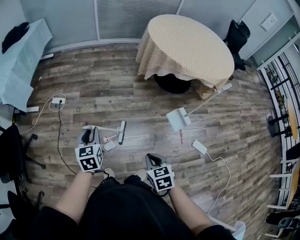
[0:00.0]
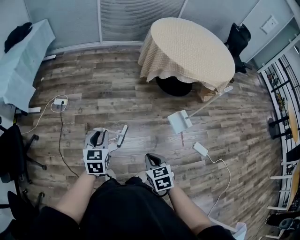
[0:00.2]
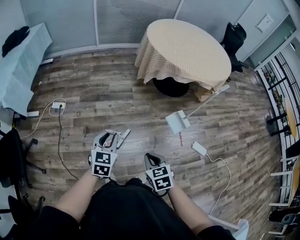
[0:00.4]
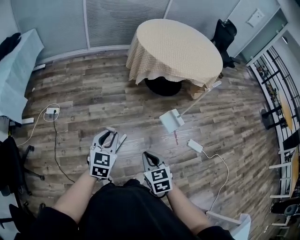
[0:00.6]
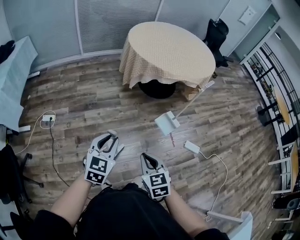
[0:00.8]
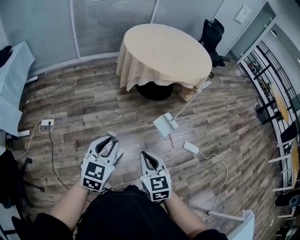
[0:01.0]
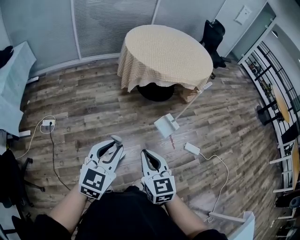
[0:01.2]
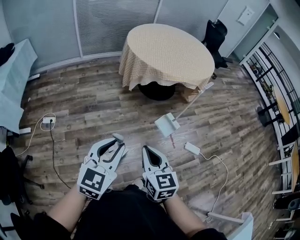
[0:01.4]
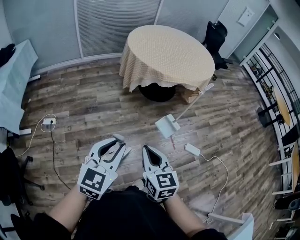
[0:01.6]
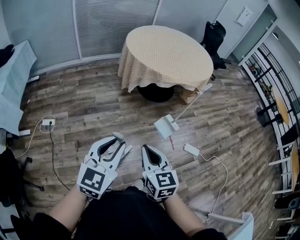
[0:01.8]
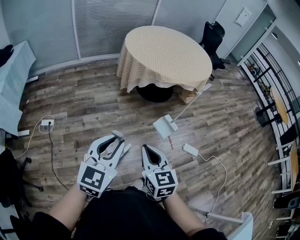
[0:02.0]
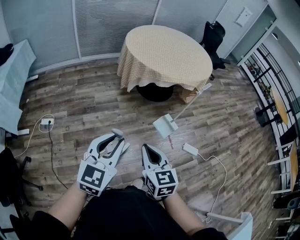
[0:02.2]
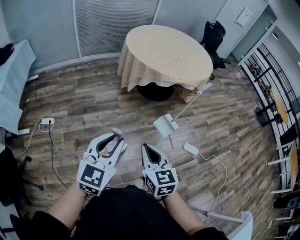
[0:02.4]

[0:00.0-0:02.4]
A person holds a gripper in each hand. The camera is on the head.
0:00.0 to 0:01.2: The left gripper ends up some 25 cm from where it was, and rotates roughly 50 degrees; the right gripper is displaced upward by some 15 cm, and rotates approximately 30 degrees.
0:01.2 to 0:02.4: The grippers move only a little.

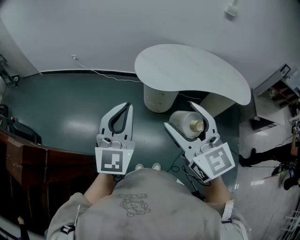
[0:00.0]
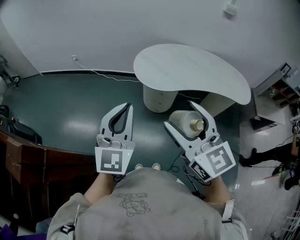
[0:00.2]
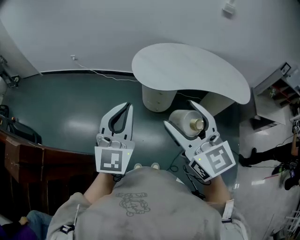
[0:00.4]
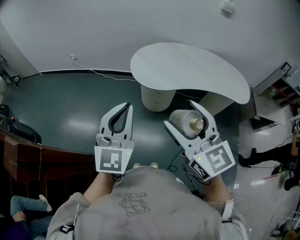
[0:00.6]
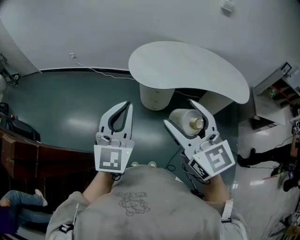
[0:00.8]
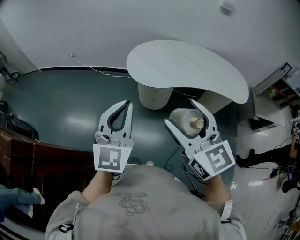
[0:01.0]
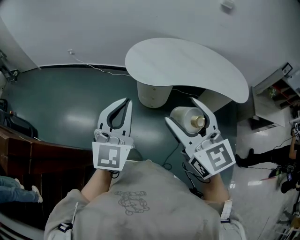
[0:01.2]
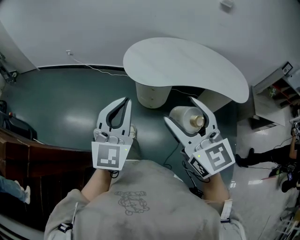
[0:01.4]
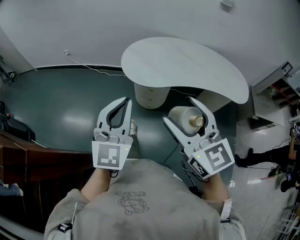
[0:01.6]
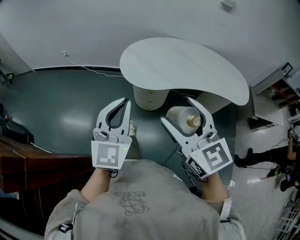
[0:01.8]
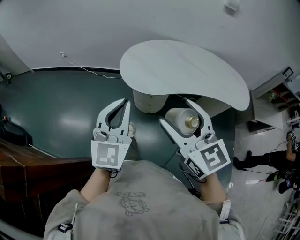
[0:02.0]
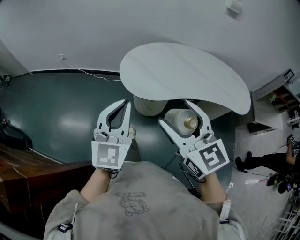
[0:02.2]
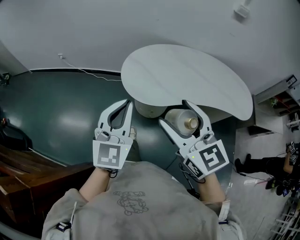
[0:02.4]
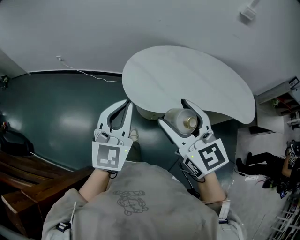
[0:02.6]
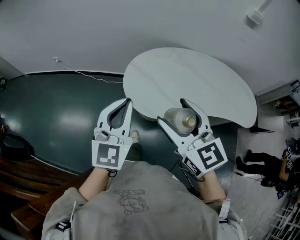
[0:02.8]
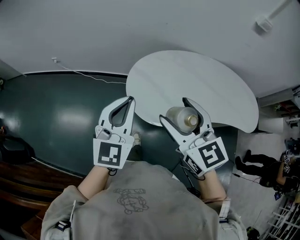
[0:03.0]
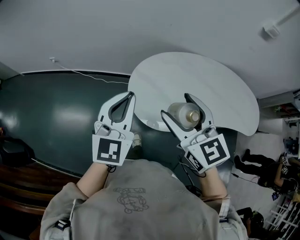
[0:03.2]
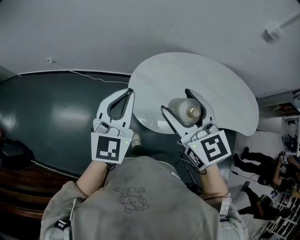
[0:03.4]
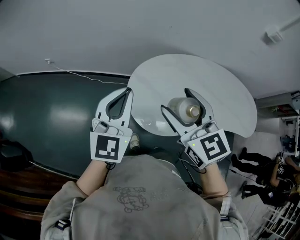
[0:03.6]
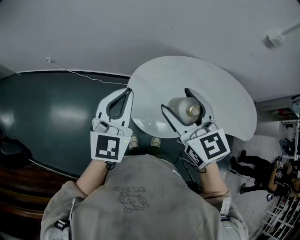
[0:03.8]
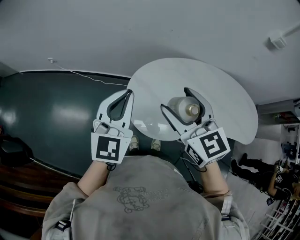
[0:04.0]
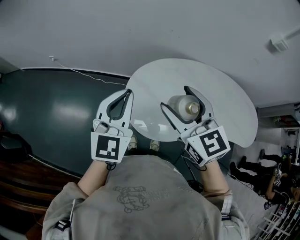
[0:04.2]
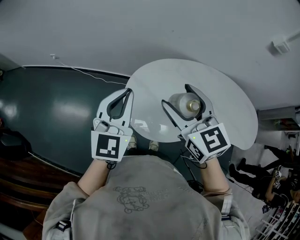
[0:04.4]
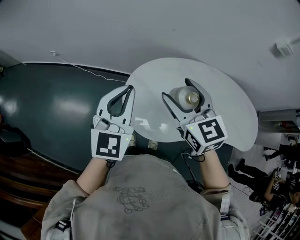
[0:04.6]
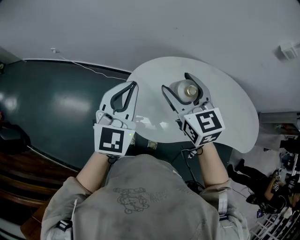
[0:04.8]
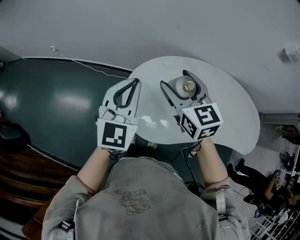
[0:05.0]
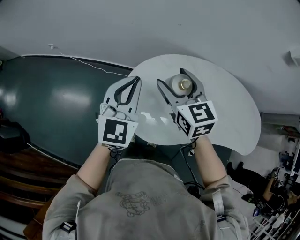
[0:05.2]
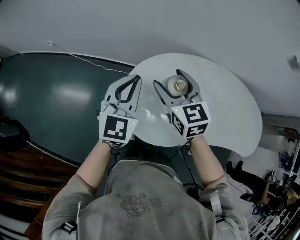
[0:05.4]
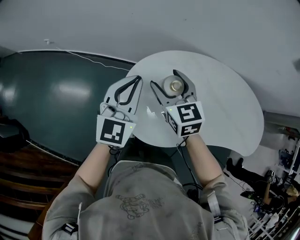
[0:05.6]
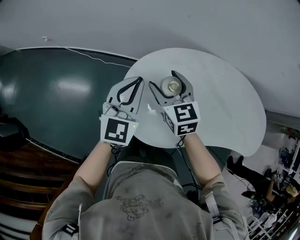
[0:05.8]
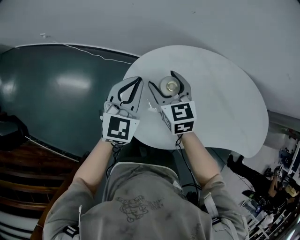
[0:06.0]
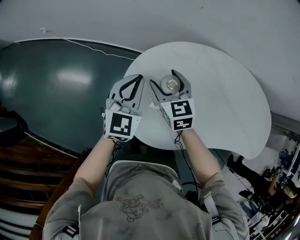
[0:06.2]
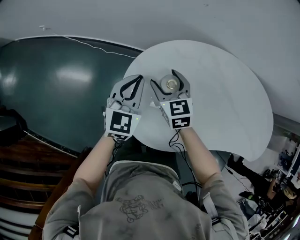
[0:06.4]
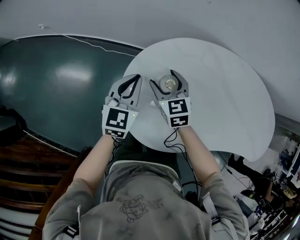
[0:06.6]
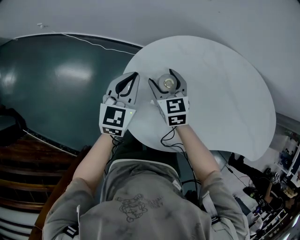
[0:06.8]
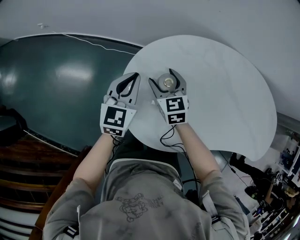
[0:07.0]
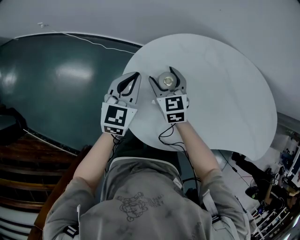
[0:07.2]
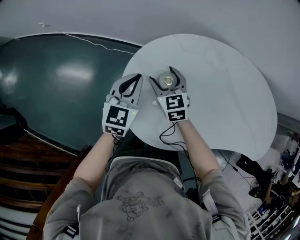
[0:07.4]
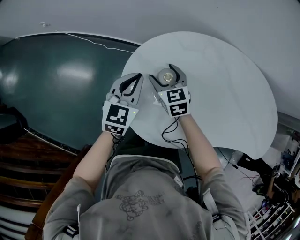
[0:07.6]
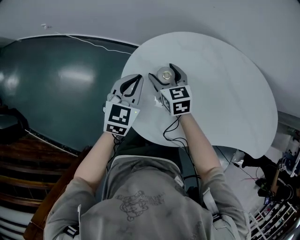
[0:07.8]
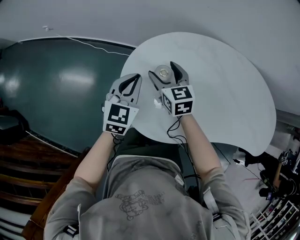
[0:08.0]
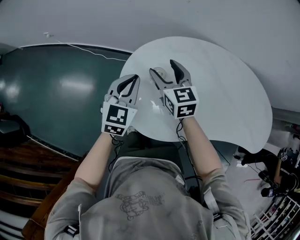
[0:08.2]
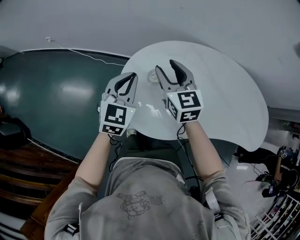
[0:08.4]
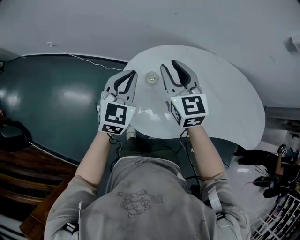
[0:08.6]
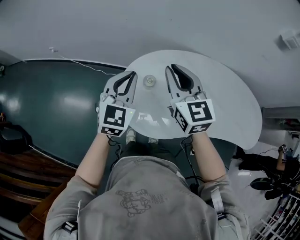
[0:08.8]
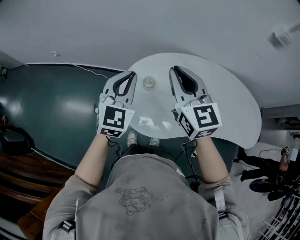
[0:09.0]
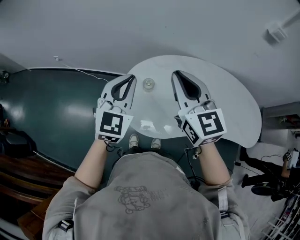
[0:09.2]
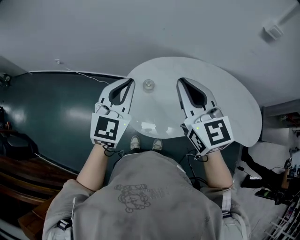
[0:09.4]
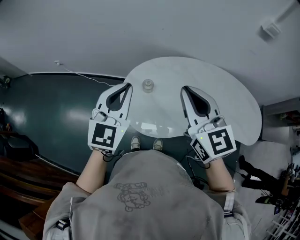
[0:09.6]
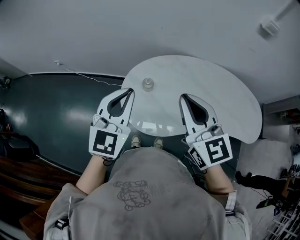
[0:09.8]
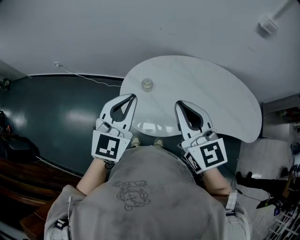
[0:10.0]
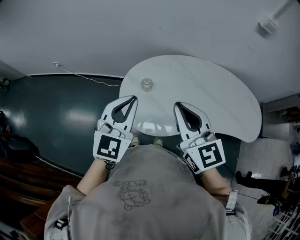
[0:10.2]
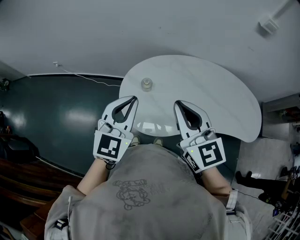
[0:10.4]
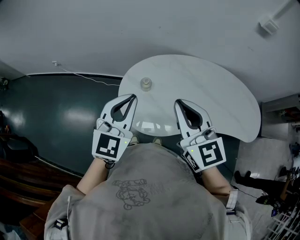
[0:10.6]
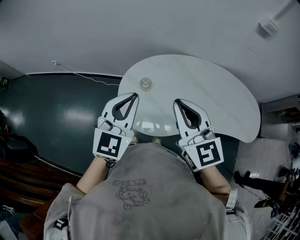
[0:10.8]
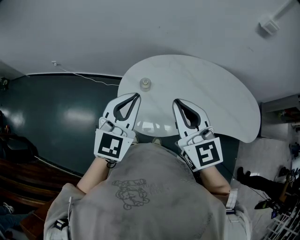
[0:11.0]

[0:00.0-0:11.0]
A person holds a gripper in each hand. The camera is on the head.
0:00.0 to 0:01.6: Both grippers move to the right, roughly 10 cm.
0:01.6 to 0:03.2: The pair of grippers is taken forward, about 40 cm.
0:03.2 to 0:04.8: The left gripper shifts roughly 10 cm forward. The right gripper travels forward by about 15 cm.
0:04.8 to 0:06.2: Both grippers move downward and forward, roughly 25 cm.
0:06.2 to 0:07.8: The two grippers go about 10 cm downward.
0:07.8 to 0:09.4: The right gripper is displaced upward and backward by about 40 cm, swivels about 30 degrees, and closes its fingers. The left gripper goes about 30 cm upward, and swivels roughly 20 degrees.
0:09.4 to 0:11.0: The right gripper is displaced backward by approximately 5 cm. The left gripper shifts by roughly 5 cm.

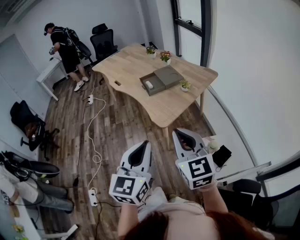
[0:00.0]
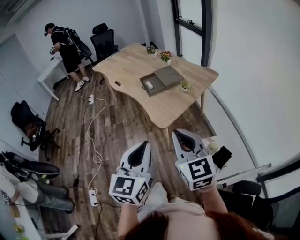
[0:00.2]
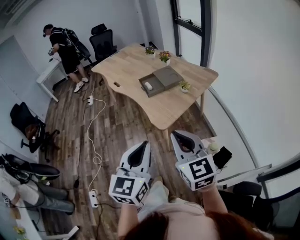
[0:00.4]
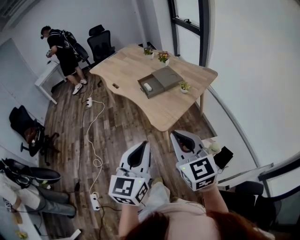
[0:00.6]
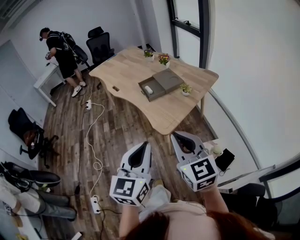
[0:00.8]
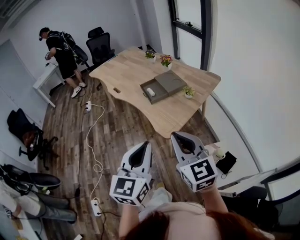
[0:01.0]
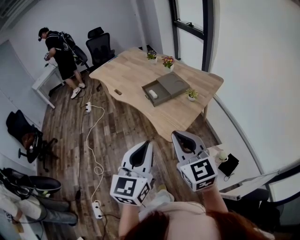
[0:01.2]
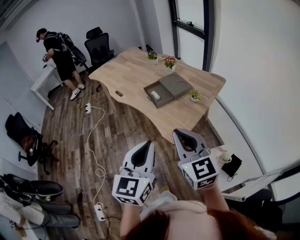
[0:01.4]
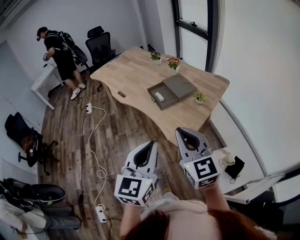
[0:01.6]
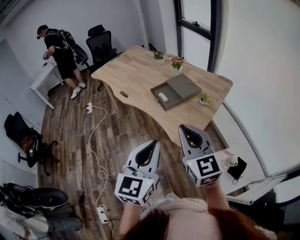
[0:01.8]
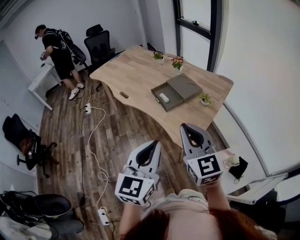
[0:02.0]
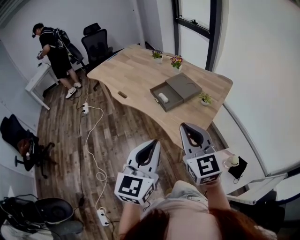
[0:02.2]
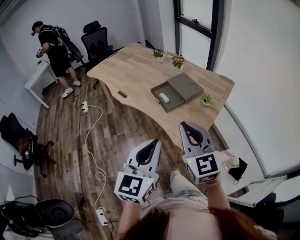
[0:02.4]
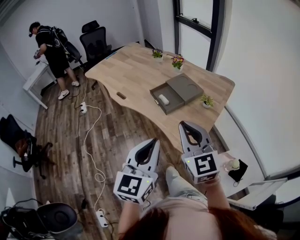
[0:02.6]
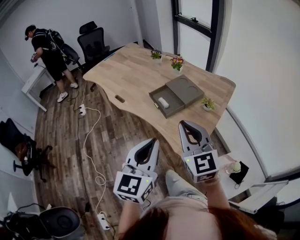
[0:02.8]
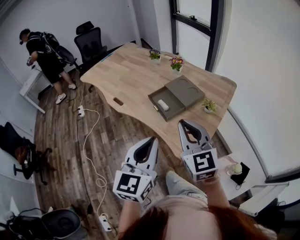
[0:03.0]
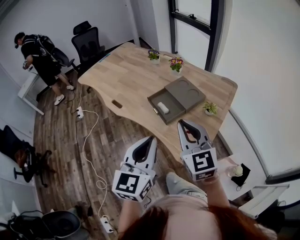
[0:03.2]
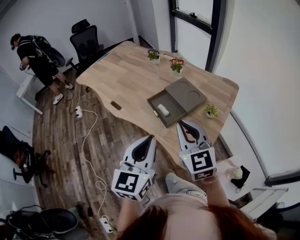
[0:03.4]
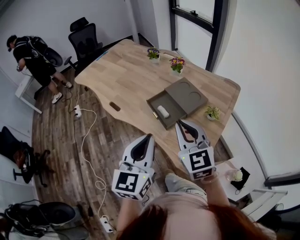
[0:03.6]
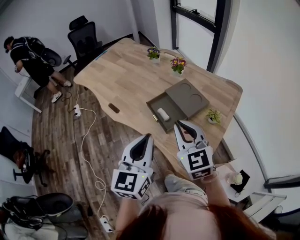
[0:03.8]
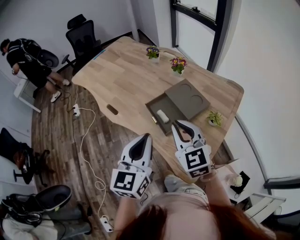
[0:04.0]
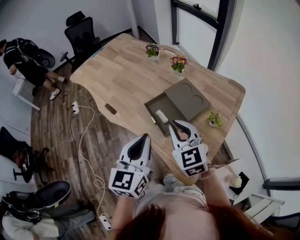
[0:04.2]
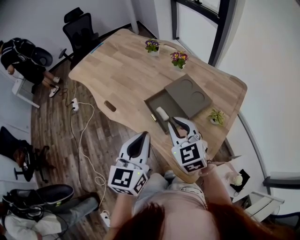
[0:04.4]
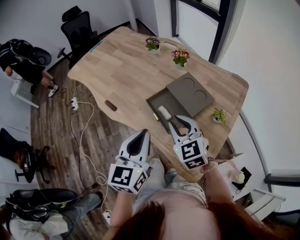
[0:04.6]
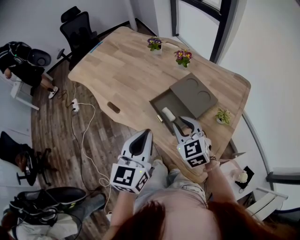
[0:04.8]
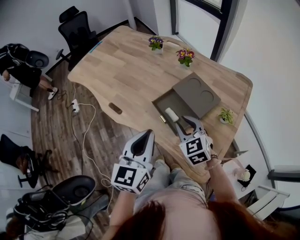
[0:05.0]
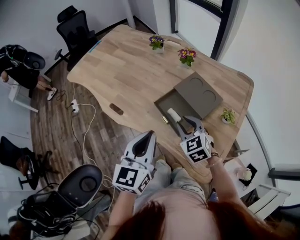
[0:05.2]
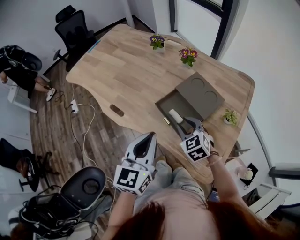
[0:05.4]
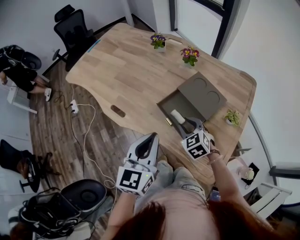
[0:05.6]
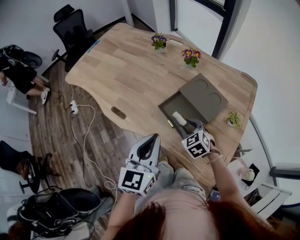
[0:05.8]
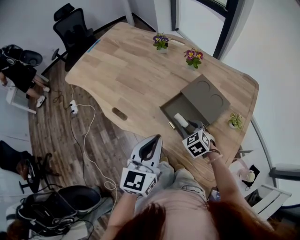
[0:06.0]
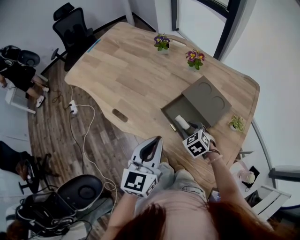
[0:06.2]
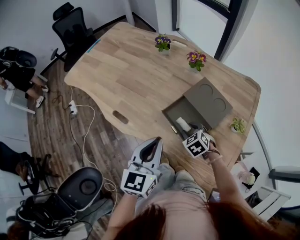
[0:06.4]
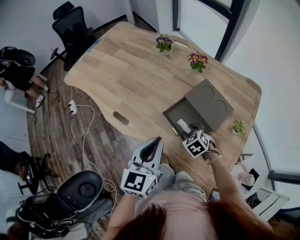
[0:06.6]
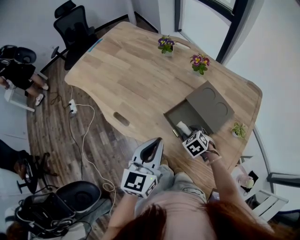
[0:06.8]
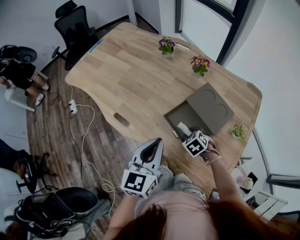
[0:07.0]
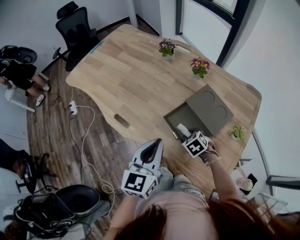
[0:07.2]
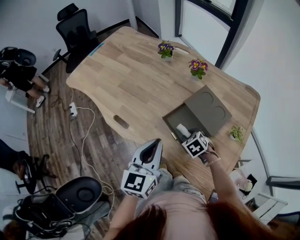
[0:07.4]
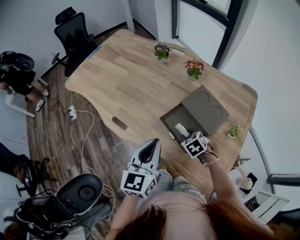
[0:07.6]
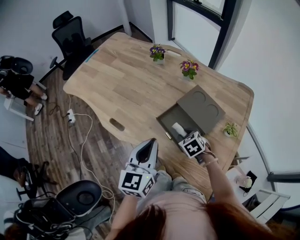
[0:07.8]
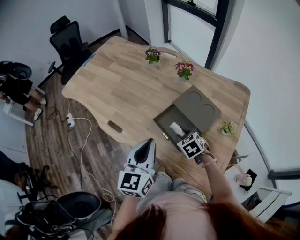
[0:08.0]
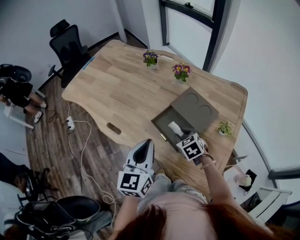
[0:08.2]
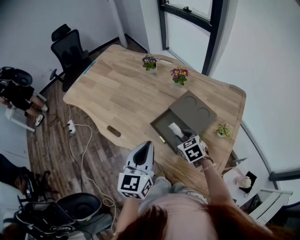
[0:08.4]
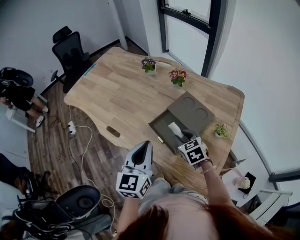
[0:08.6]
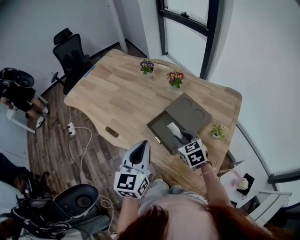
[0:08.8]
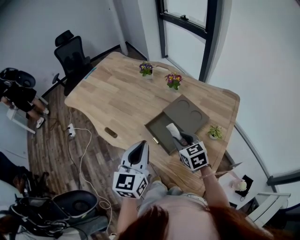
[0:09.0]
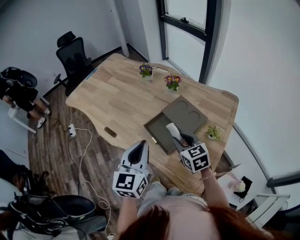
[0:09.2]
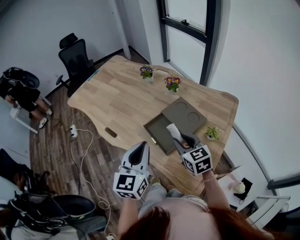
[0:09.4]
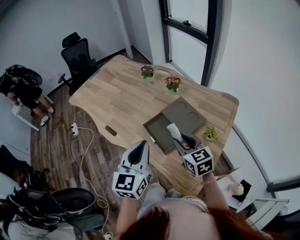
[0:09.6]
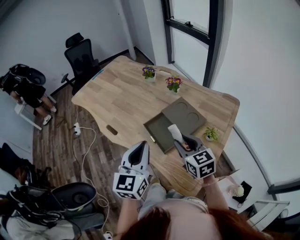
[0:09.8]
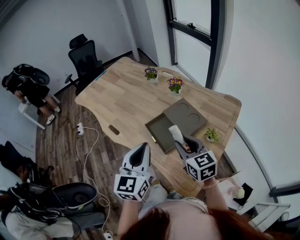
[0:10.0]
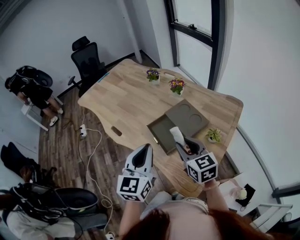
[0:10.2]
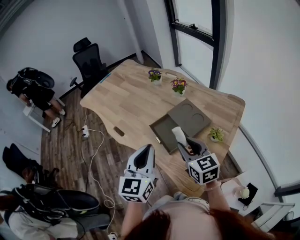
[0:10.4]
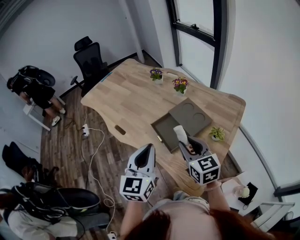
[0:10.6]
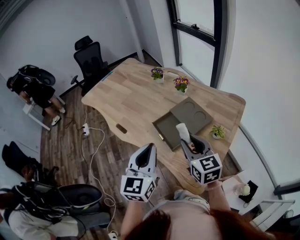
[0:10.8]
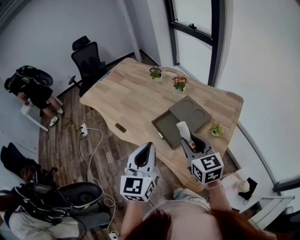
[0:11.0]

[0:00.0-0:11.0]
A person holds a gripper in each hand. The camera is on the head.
0:00.0 to 0:01.6: Both grippers travel together forward and to the left, about 20 cm.
0:01.6 to 0:03.2: Both grippers move forward, some 20 cm.
0:03.2 to 0:04.8: The right gripper shifts some 20 cm forward and downward, and rotates some 20 degrees; the left gripper moves forward, roughly 15 cm.
0:04.8 to 0:06.2: The left gripper shifts about 5 cm forward and downward. Meanwhile the right gripper heads downward, covering approximately 15 cm, and rotates approximately 30 degrees.
0:06.2 to 0:07.8: The grippers make only small movements.
0:07.8 to 0:09.4: The right gripper moves upward, some 20 cm, and tilts its fingers roughly 30 degrees upward; the left gripper goes some 10 cm upward, backward and to the right.
0:09.4 to 0:11.0: The right gripper travels upward and backward by some 10 cm. The left gripper travels backward by some 5 cm.
